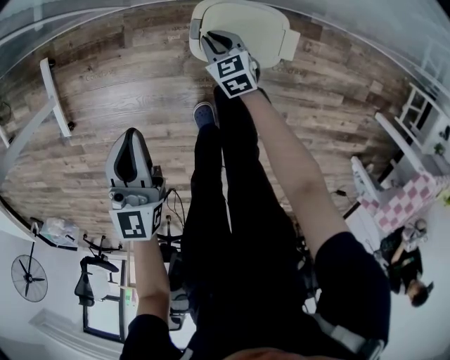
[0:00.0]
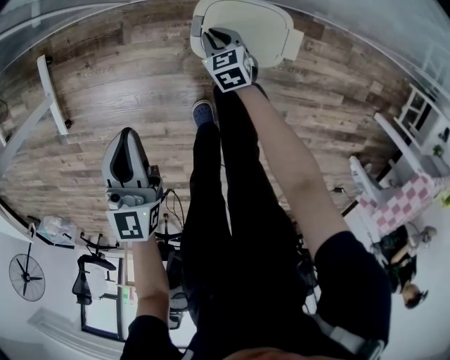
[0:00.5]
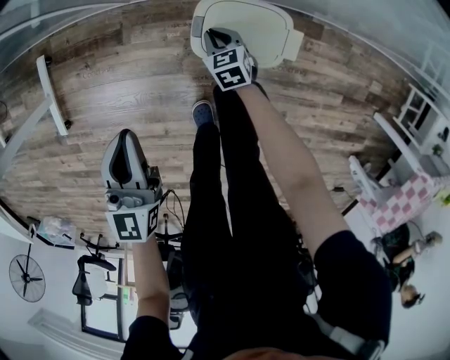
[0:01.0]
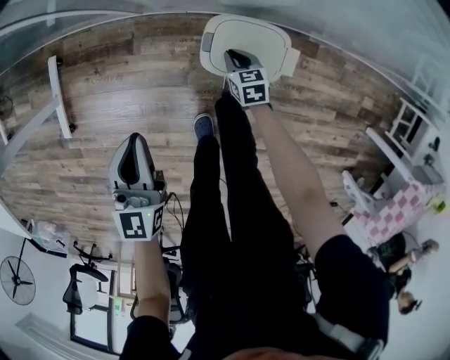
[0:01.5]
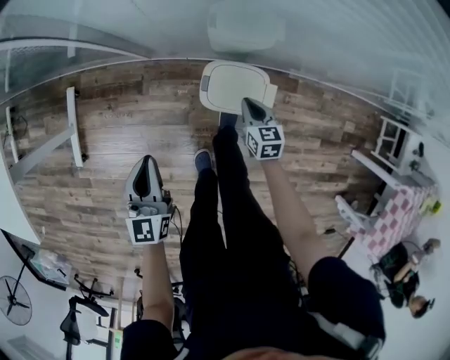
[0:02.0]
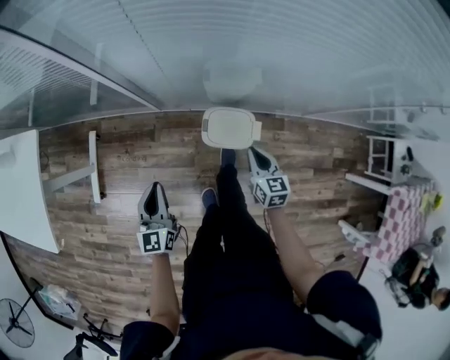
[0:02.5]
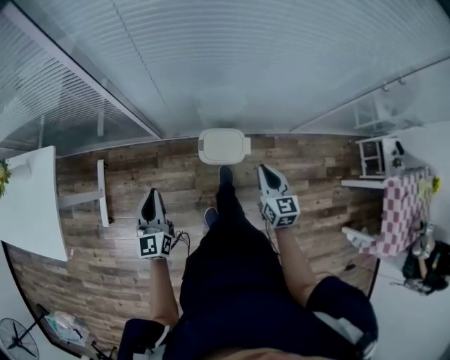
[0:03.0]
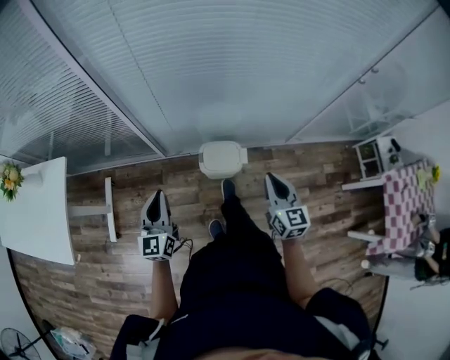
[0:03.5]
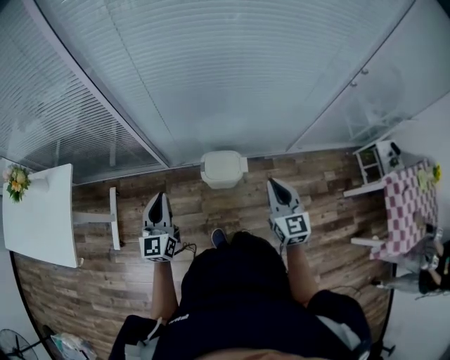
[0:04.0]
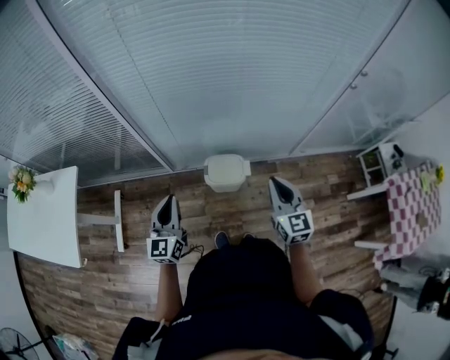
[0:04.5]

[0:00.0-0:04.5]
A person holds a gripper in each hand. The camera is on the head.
0.0 to 2.0 s: The right gripper shifts approximately 15 cm upward and to the right, while the left gripper is displaced upward by roughly 5 cm.
2.0 to 4.5 s: The left gripper shifts about 25 cm upward, and changes its angle by approximately 20 degrees. The right gripper moves upward and backward, roughly 50 cm, and tilts its fingers roughly 30 degrees upward.

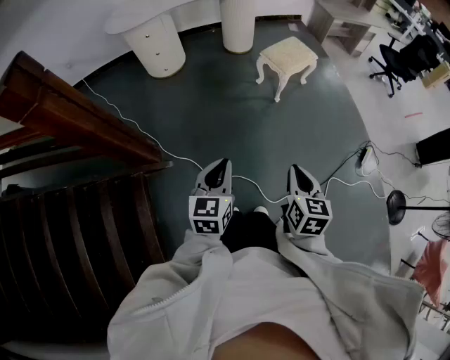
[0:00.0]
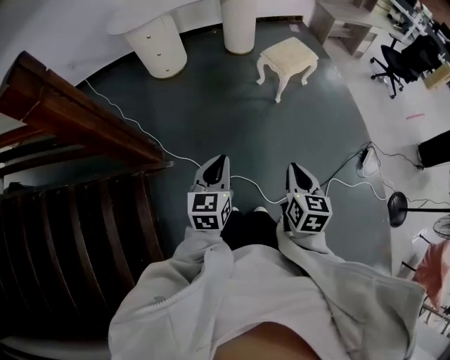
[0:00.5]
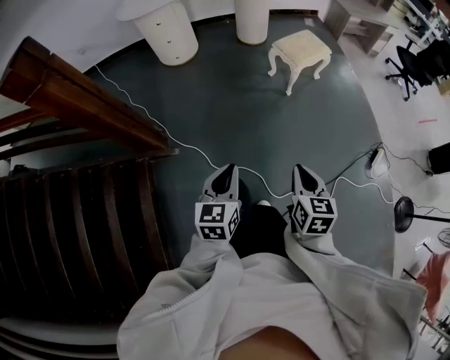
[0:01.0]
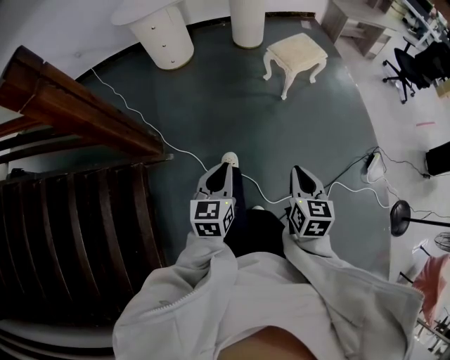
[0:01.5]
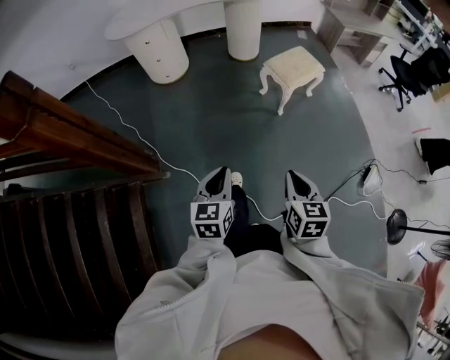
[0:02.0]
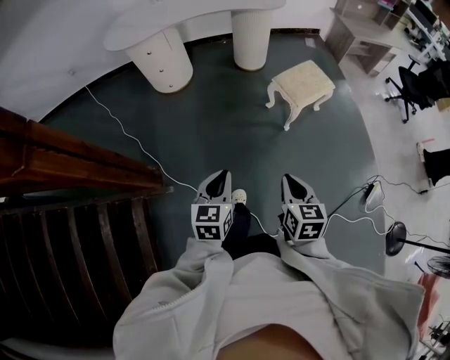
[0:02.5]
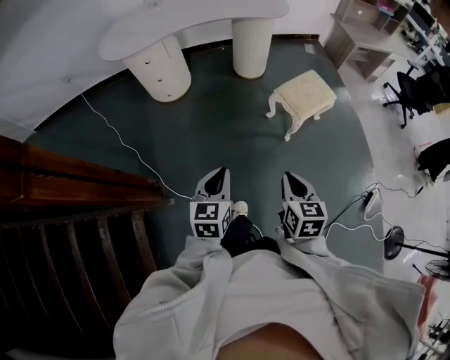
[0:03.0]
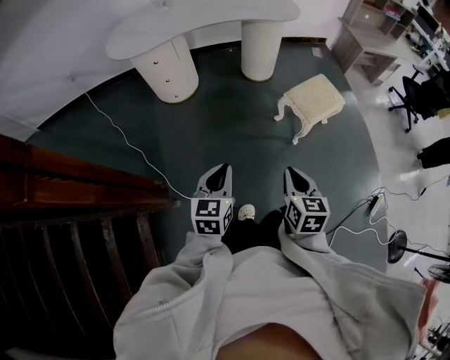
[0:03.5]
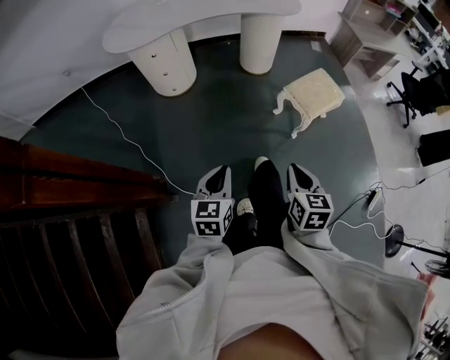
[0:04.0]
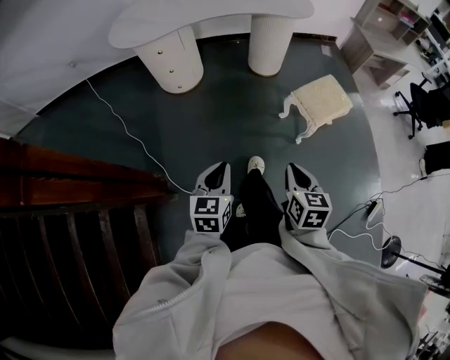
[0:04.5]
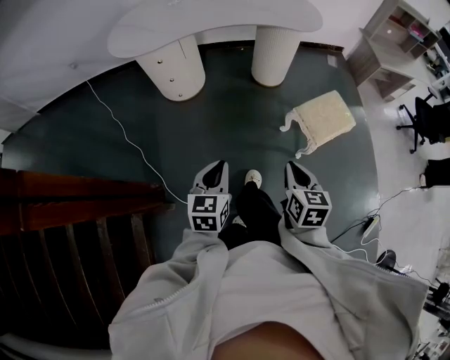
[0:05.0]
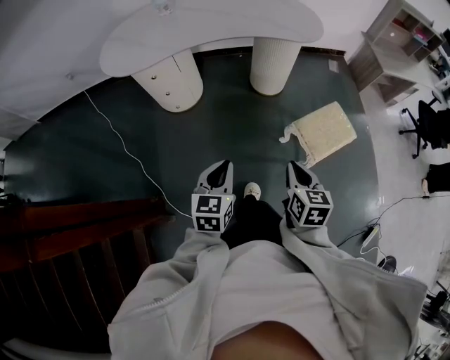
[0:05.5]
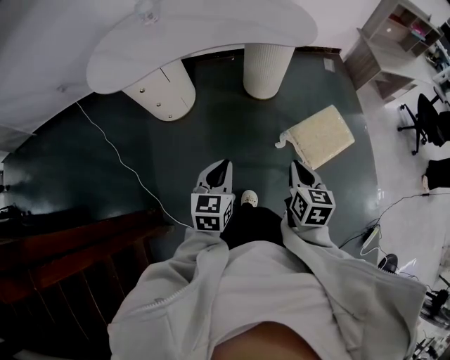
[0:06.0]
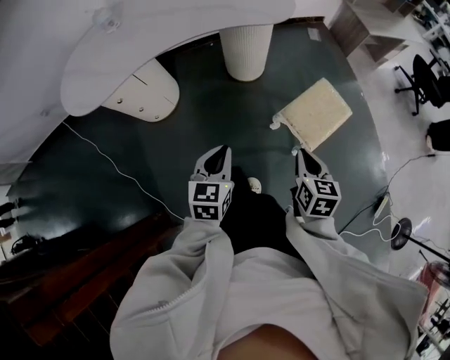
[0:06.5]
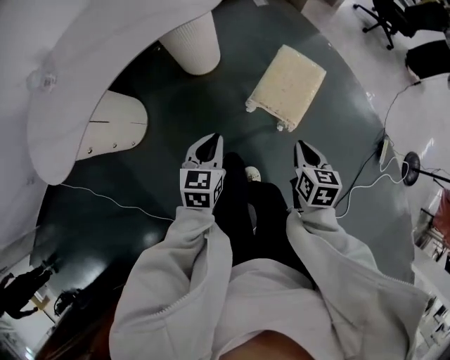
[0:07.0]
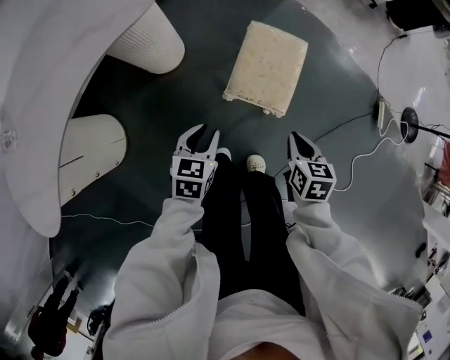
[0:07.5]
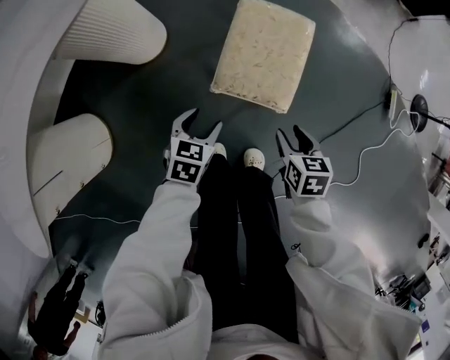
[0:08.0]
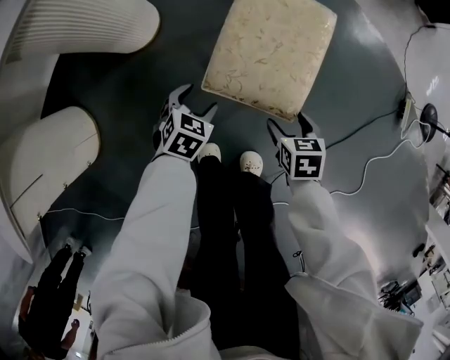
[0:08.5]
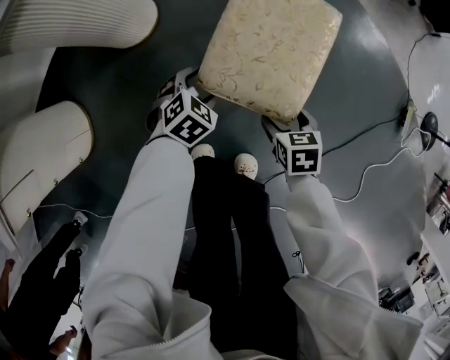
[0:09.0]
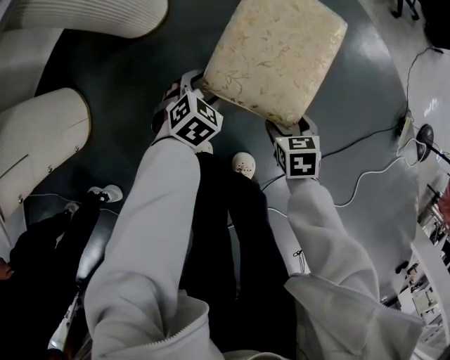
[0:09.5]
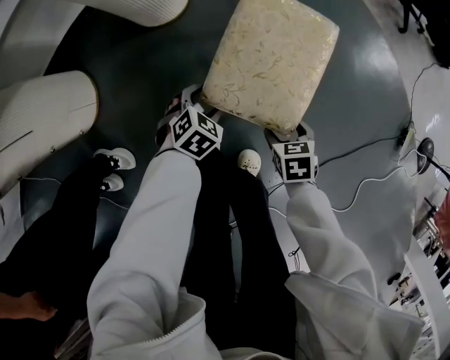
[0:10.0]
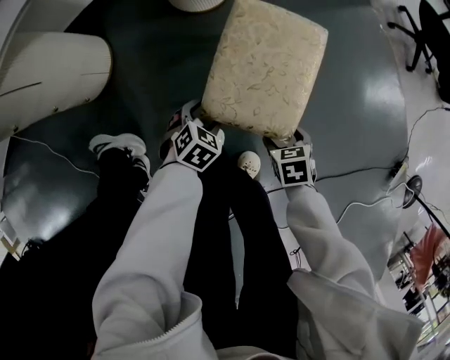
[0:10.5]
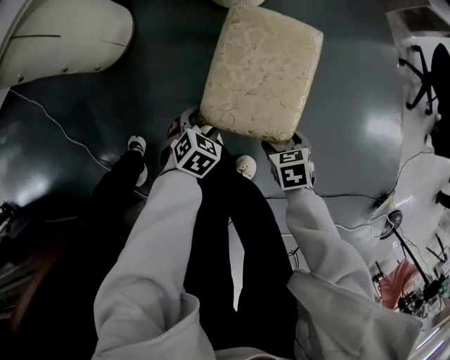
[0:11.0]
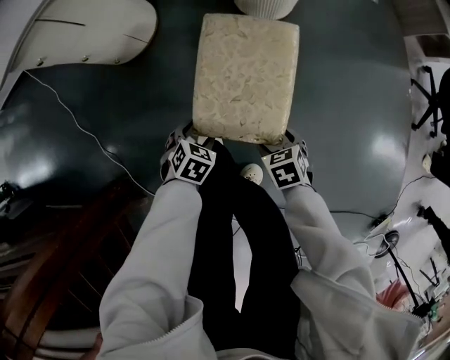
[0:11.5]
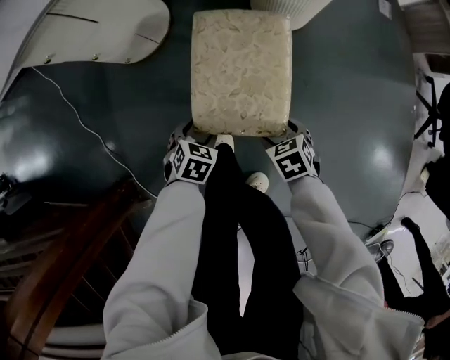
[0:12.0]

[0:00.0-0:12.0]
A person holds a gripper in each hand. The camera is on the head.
0.0 to 2.0 s: Both grippers travel together forward, approximately 10 cm.
2.0 to 4.0 s: Both grippers move forward and to the left, some 25 cm.
4.0 to 6.0 s: The two grippers go approximately 30 cm forward.
6.0 to 8.0 s: Both grippers travel together downward, roughly 30 cm. The right gripper changes its angle by some 40 degrees, and opens; the left gripper turns by approximately 60 degrees, and opens up.
8.0 to 10.0 s: The two grippers go approximately 15 cm downward. The right gripper swivels some 30 degrees, and opens its fingers.
10.0 to 12.0 s: The left gripper moves approximately 25 cm, and rolls counterclockwise, seen from behind, by about 50 degrees; the right gripper moves about 25 cm, and twists some 50 degrees counterclockwise, seen from behind.

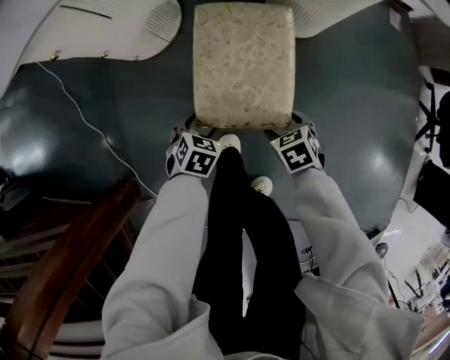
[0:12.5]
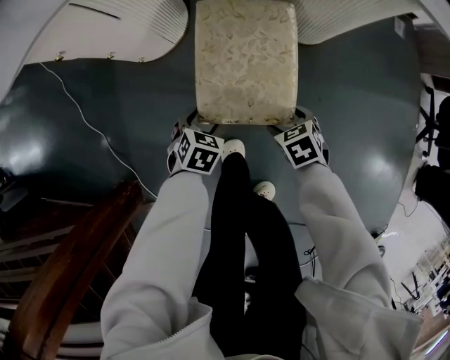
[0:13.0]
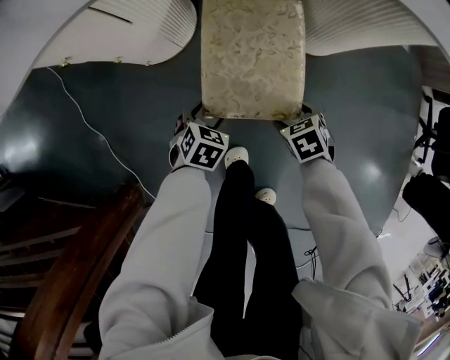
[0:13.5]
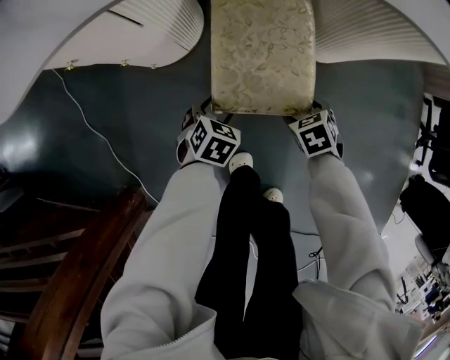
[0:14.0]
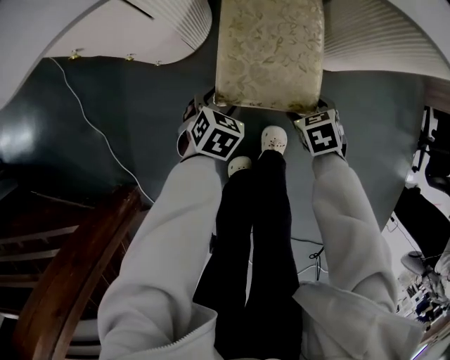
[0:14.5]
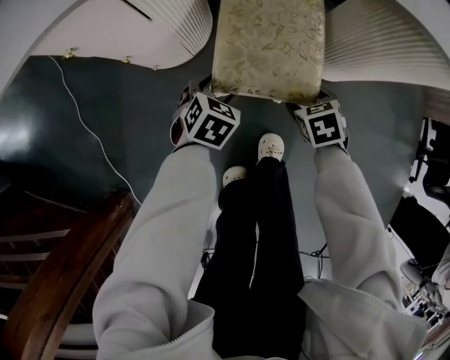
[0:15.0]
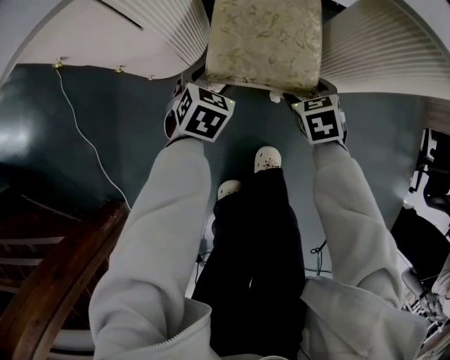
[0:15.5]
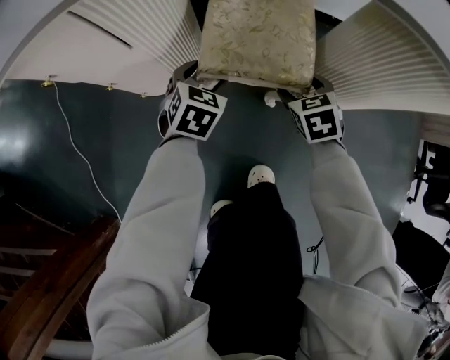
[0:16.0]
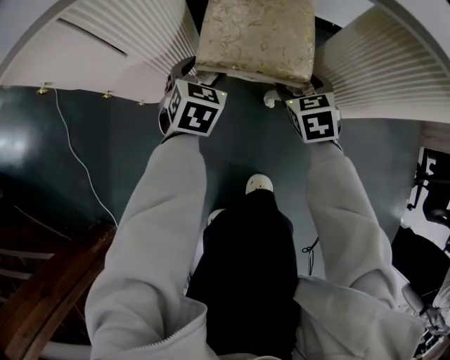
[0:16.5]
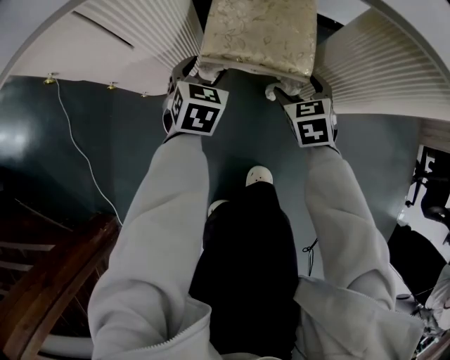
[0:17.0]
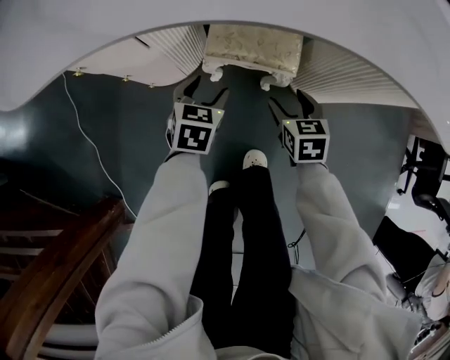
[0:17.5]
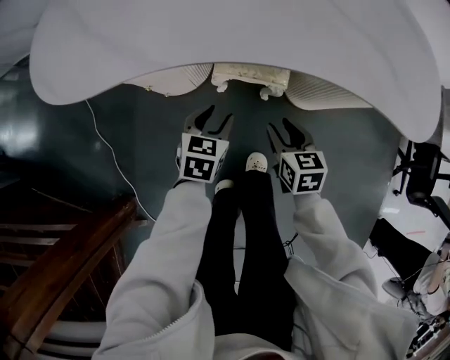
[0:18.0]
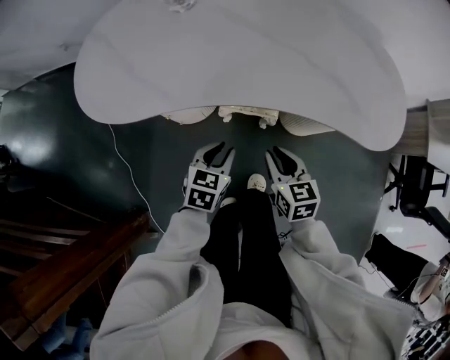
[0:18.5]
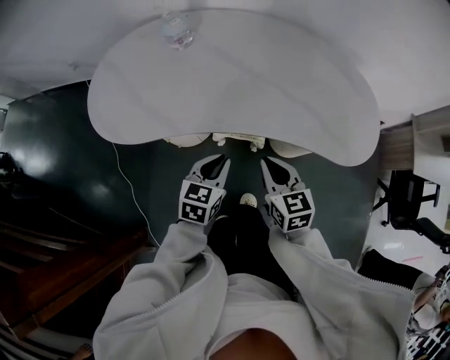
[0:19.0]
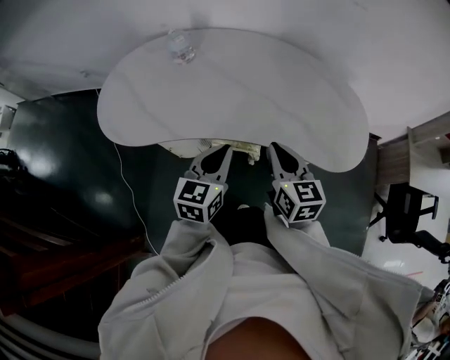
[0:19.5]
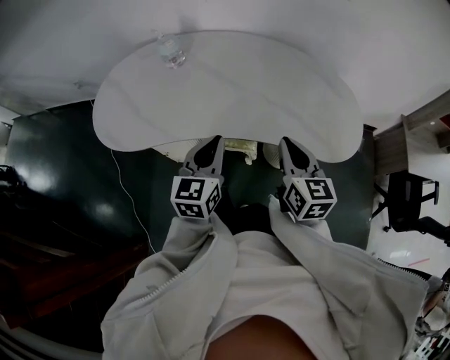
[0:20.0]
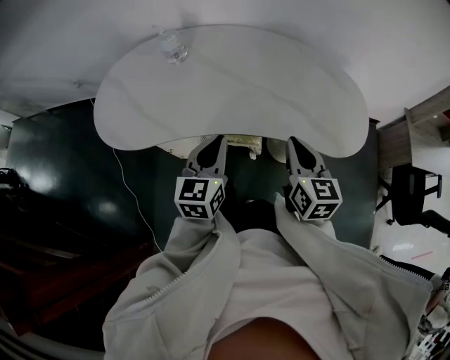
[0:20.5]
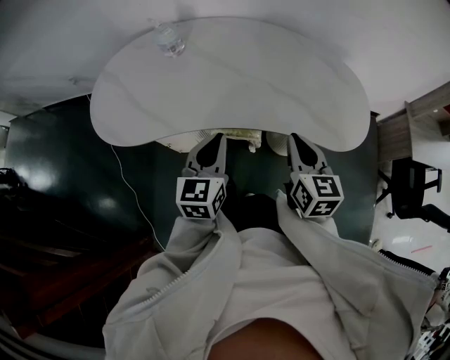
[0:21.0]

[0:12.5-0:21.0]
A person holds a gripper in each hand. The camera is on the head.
12.5 to 14.5 s: The left gripper shifts by roughly 15 cm, while the right gripper moves some 15 cm.
14.5 to 16.5 s: Both grippers move forward, roughly 20 cm. The right gripper changes its angle by roughly 30 degrees. Meanwhile the left gripper swivels about 20 degrees.
16.5 to 19.0 s: The two grippers go about 40 cm upward. The left gripper closes its fingers; the right gripper rotates about 30 degrees, and closes its fingers.
19.0 to 21.0 s: The left gripper is displaced upward by some 10 cm, and rotates some 20 degrees; the right gripper heads to the right and upward, covering roughly 10 cm.

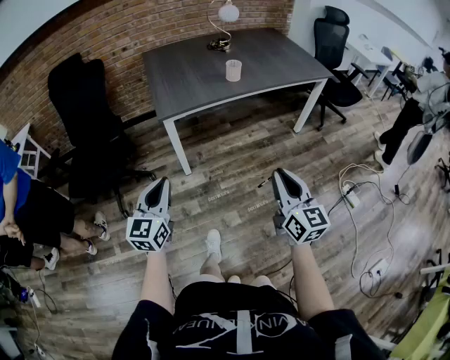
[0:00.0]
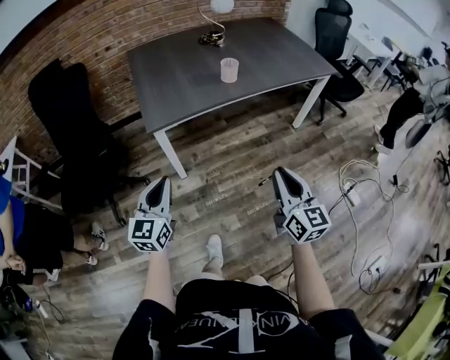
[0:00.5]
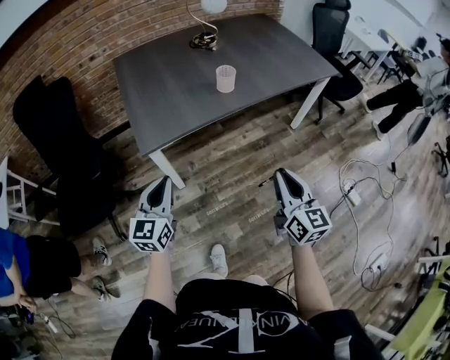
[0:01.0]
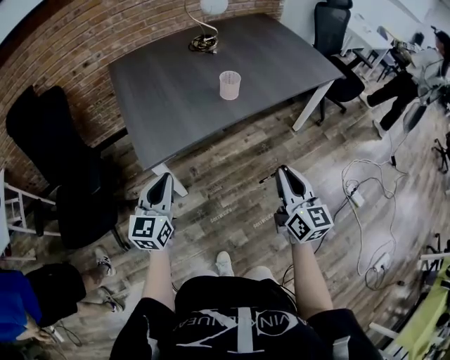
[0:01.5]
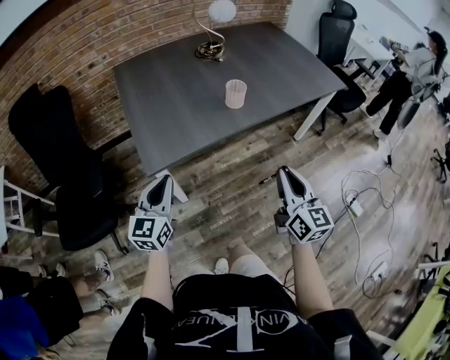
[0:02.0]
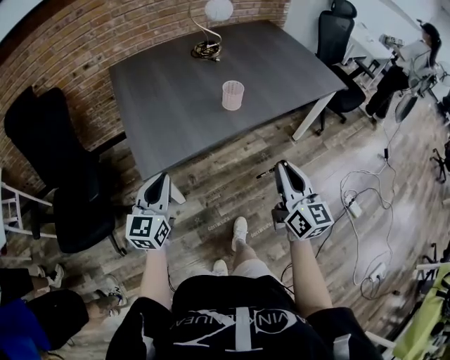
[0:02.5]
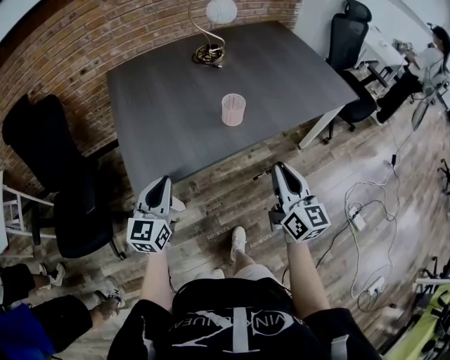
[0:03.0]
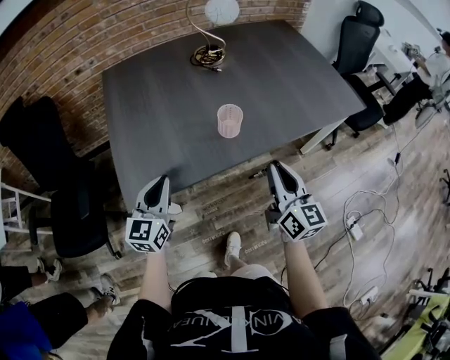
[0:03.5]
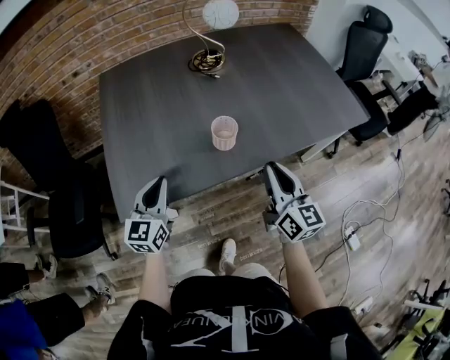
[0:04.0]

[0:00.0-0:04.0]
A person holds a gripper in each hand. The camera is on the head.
0.0 to 2.0 s: Both grippers travel together forward, some 30 cm.
2.0 to 4.0 s: The right gripper is displaced forward by some 25 cm, while the left gripper travels forward and to the right by about 25 cm.
